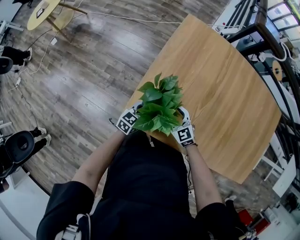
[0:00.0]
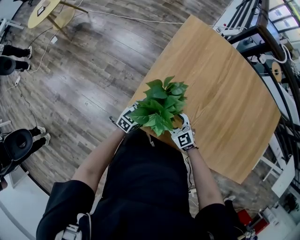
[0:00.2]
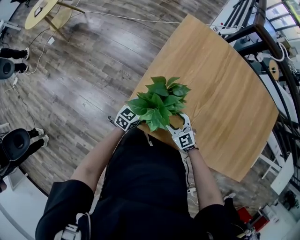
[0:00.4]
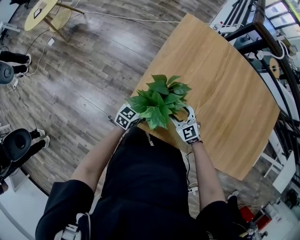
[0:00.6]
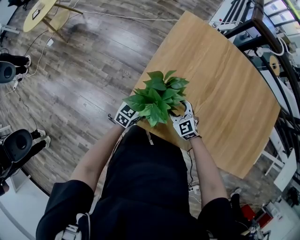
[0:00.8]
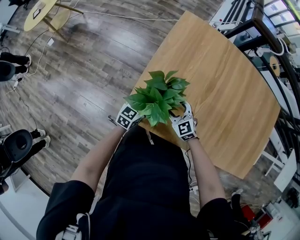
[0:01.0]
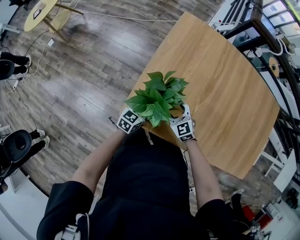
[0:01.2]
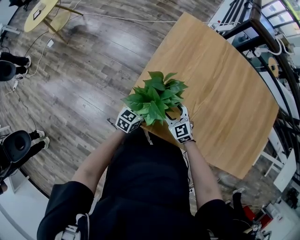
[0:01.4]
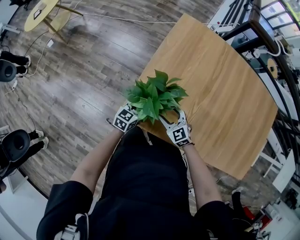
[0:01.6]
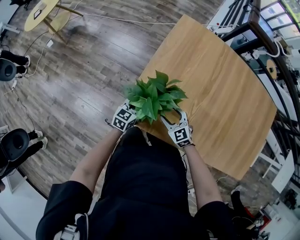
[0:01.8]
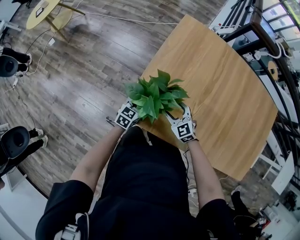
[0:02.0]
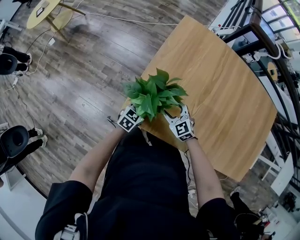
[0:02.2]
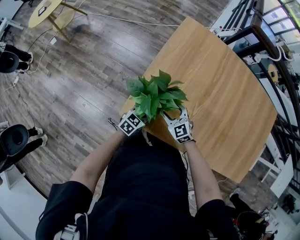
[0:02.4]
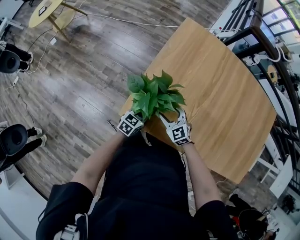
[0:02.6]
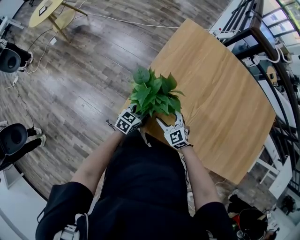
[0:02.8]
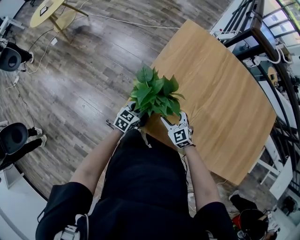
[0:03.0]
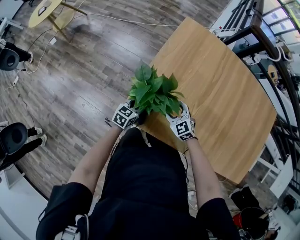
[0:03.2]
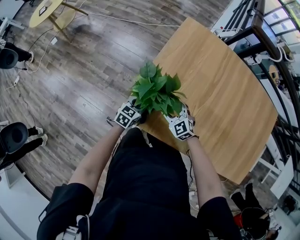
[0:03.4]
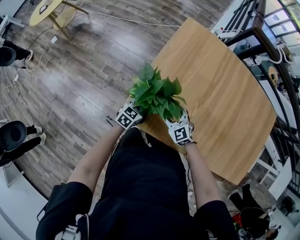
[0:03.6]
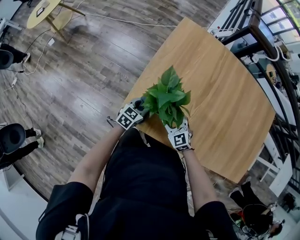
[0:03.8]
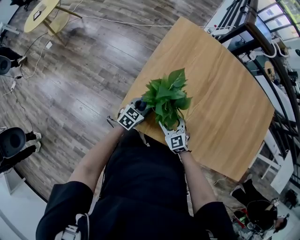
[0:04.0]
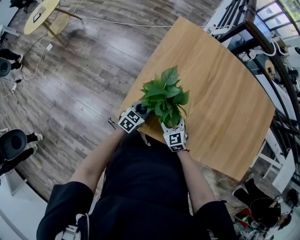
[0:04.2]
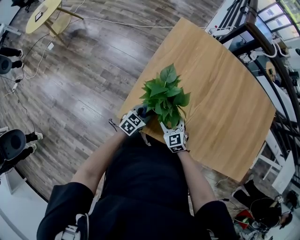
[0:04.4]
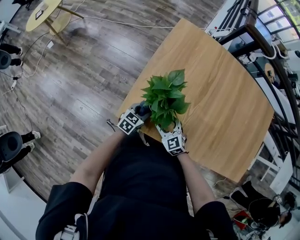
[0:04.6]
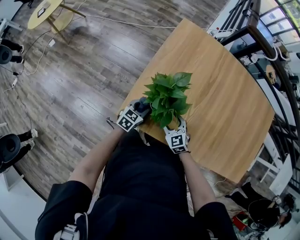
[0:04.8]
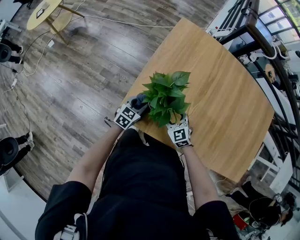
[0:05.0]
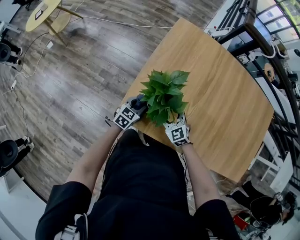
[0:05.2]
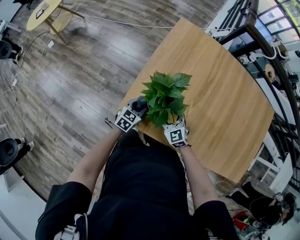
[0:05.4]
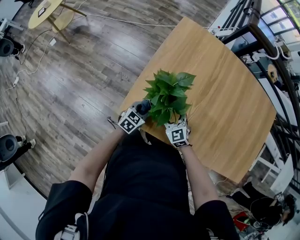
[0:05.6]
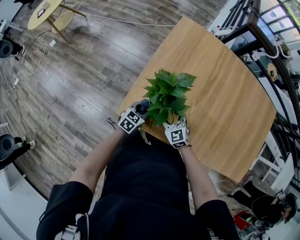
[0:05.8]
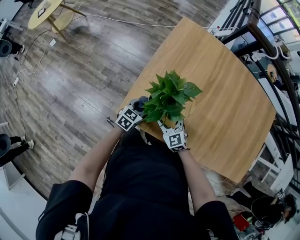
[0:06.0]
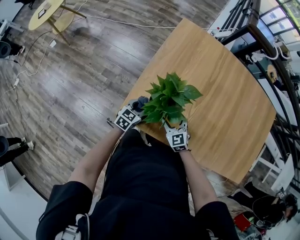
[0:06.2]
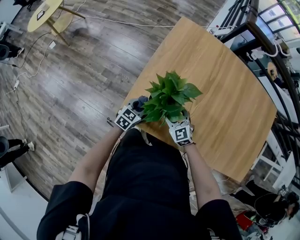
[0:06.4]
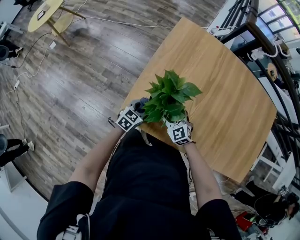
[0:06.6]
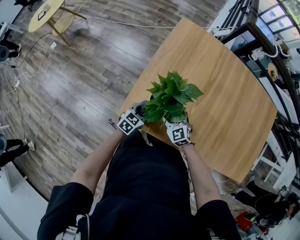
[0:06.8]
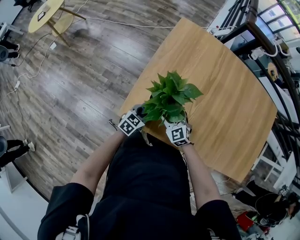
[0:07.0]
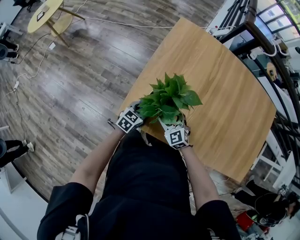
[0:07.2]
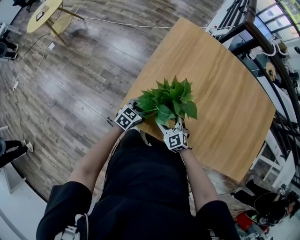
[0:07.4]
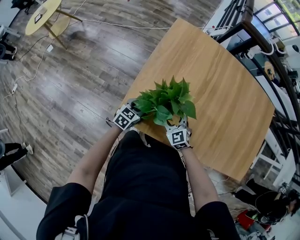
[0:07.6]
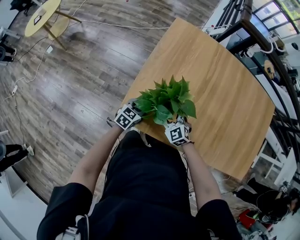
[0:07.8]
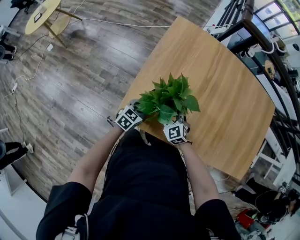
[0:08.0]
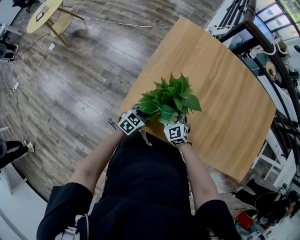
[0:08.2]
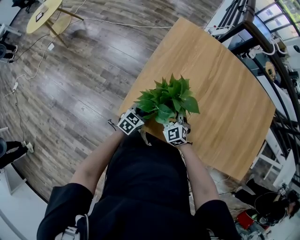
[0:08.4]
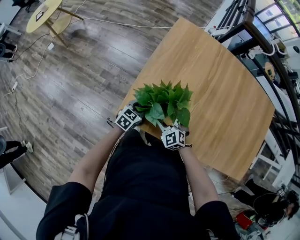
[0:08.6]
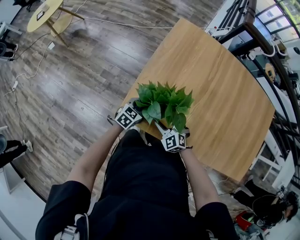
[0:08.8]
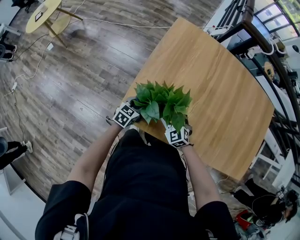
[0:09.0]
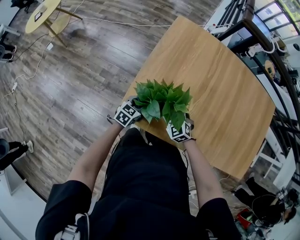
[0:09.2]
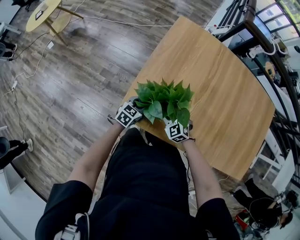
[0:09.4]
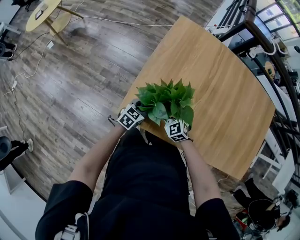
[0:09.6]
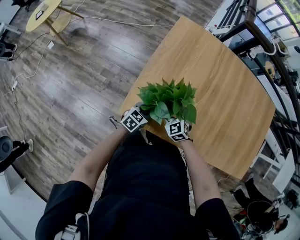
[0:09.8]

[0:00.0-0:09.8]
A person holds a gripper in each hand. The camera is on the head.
0:00.0 to 0:08.4: There are only small adjustments of the grippers.
0:08.4 to 0:09.8: The grippers move only a little.

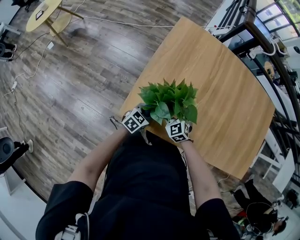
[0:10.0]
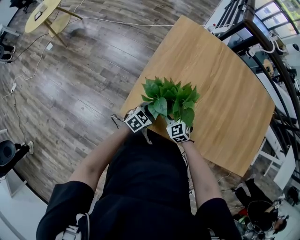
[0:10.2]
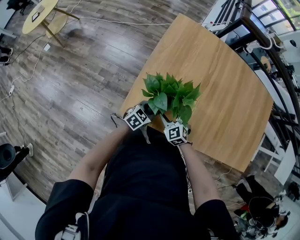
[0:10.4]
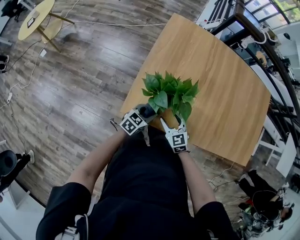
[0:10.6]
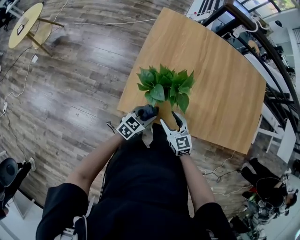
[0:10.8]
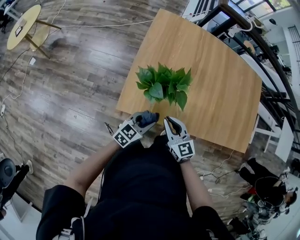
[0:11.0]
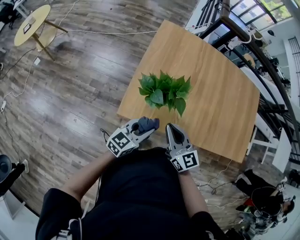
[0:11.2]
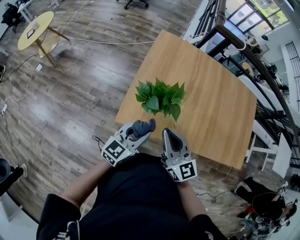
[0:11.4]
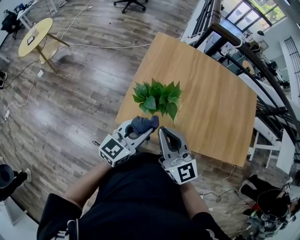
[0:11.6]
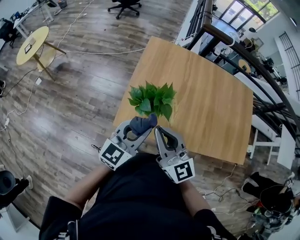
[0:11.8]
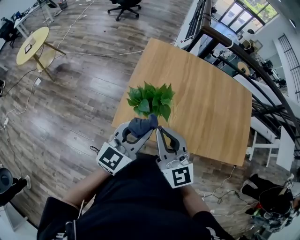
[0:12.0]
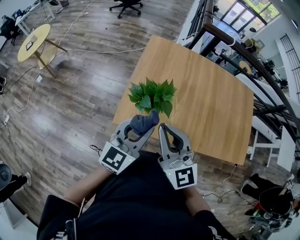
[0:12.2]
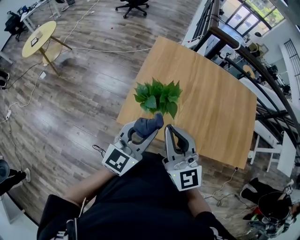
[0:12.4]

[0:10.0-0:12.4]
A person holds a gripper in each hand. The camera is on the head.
0:10.0 to 0:11.2: Both grippers travel together upward and backward, about 20 cm. The left gripper turns by about 30 degrees. The right gripper changes its angle by approximately 40 degrees, and closes.
0:11.2 to 0:12.4: Both grippers move upward, roughly 20 cm. The right gripper rotates roughly 30 degrees; the left gripper turns by about 20 degrees.

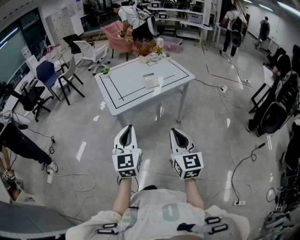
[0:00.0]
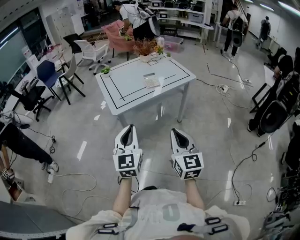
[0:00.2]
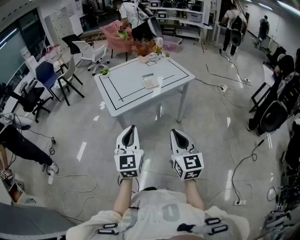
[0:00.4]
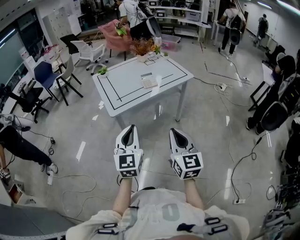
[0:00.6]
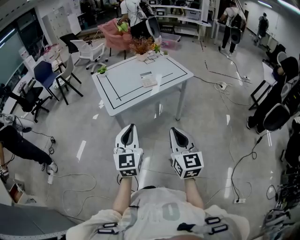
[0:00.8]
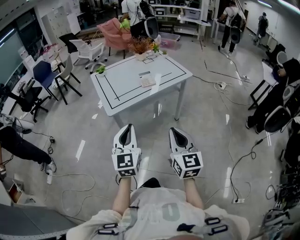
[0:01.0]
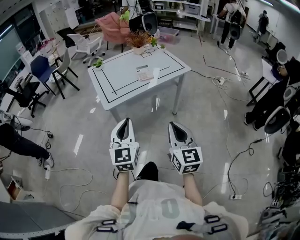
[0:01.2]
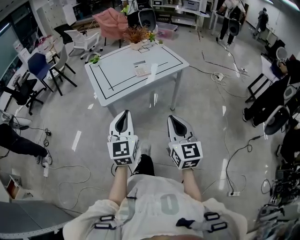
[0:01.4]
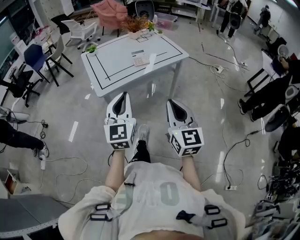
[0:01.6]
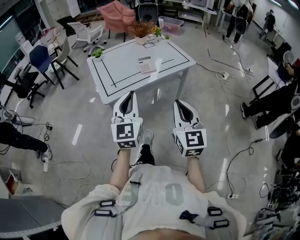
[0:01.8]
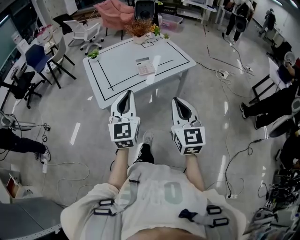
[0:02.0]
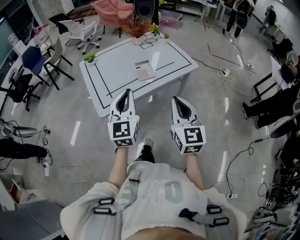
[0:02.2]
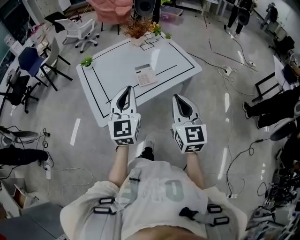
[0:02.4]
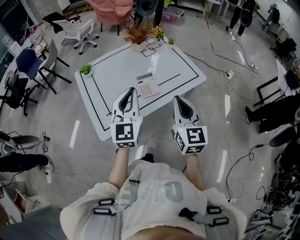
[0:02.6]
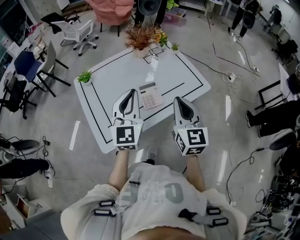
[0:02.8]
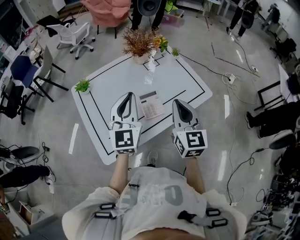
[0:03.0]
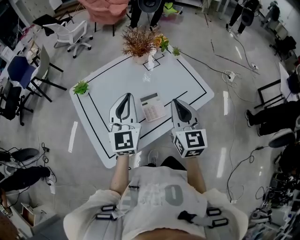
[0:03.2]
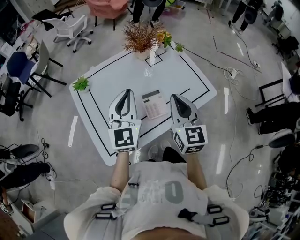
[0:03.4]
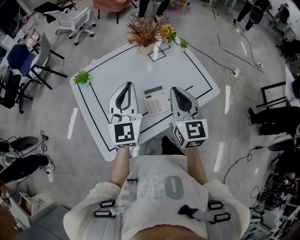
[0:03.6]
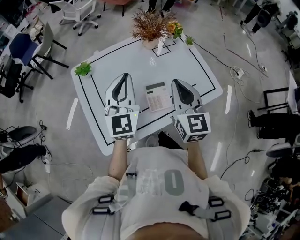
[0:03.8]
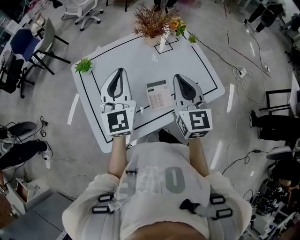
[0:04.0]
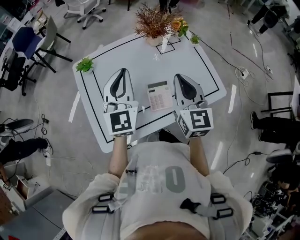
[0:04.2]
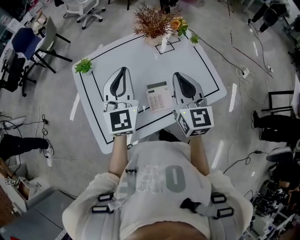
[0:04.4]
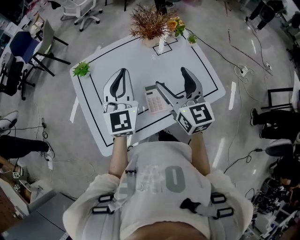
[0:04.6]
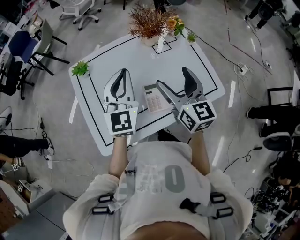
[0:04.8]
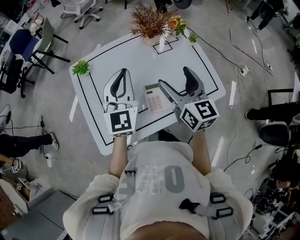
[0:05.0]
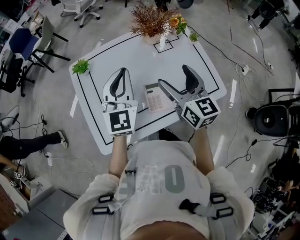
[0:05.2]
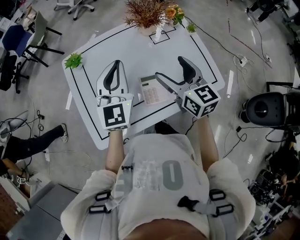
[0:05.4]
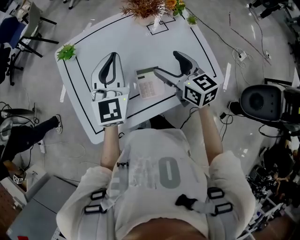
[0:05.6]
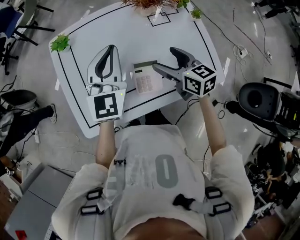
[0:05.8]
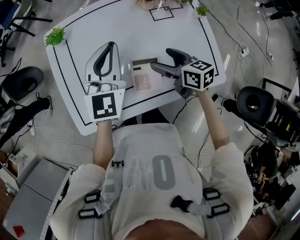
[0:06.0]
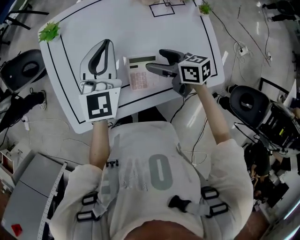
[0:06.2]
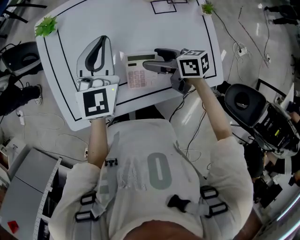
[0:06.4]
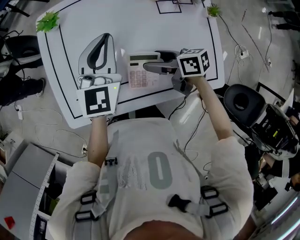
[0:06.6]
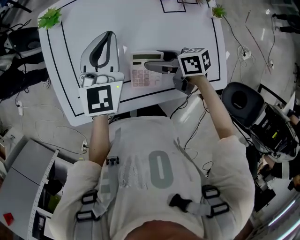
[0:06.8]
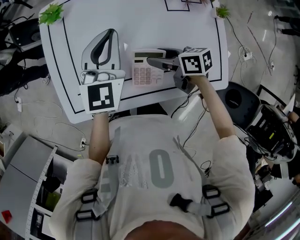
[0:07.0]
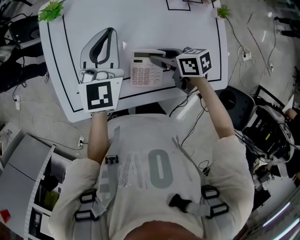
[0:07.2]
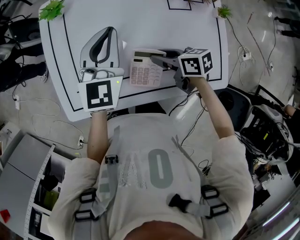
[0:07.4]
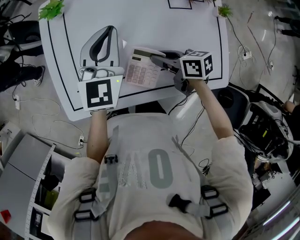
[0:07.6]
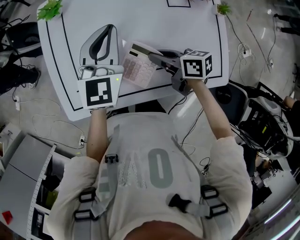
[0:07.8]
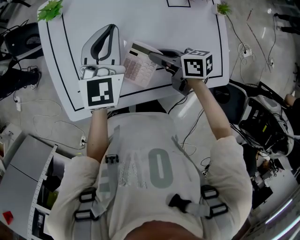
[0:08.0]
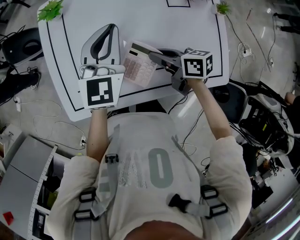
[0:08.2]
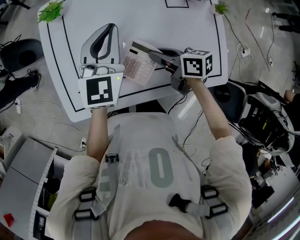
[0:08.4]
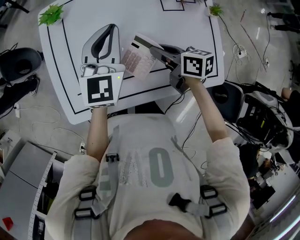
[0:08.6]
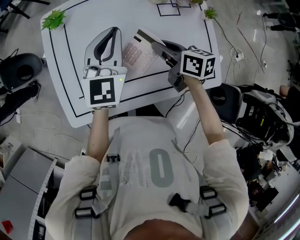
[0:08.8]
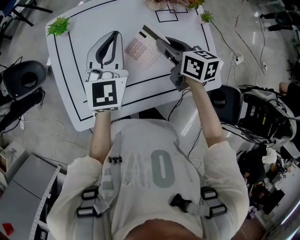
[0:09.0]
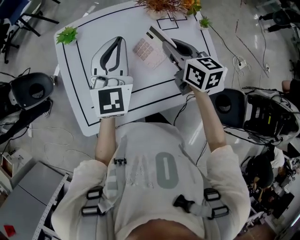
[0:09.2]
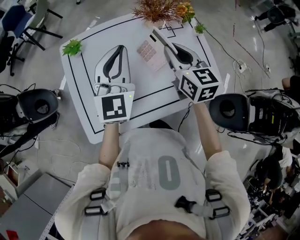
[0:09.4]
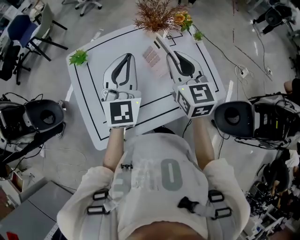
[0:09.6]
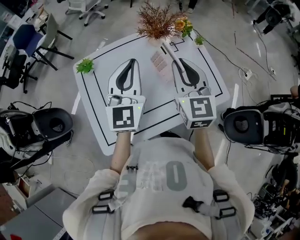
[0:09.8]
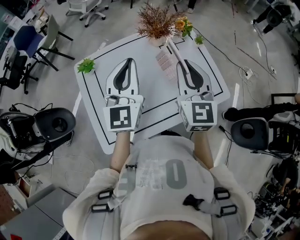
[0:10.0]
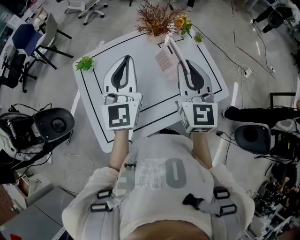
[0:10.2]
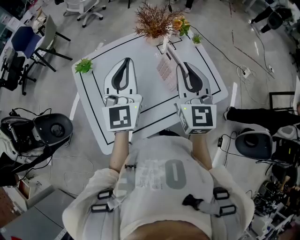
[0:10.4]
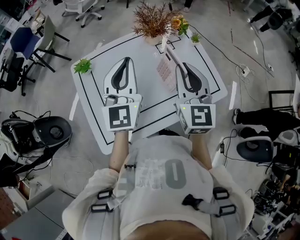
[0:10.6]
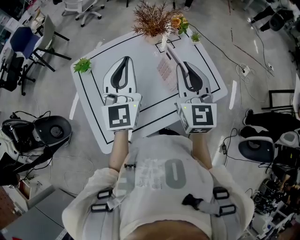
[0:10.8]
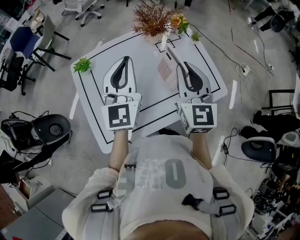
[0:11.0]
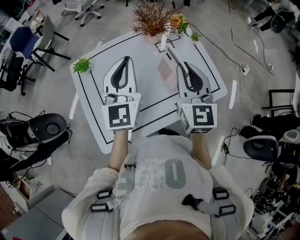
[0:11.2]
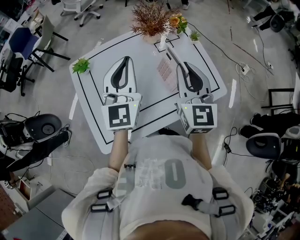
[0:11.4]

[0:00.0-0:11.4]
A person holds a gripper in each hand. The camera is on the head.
0:00.0 to 0:01.4: The left gripper changes place by some 5 cm. The right gripper moves approximately 5 cm.
0:01.4 to 0:02.8: The two grippers travel together, forward, about 40 cm.
0:02.8 to 0:04.2: The right gripper is displaced forward by approximately 15 cm, while the left gripper goes some 15 cm forward and to the left.
0:04.2 to 0:05.6: The left gripper shifts by approximately 5 cm. The right gripper is displaced downward and forward by about 10 cm, changes its angle by roughly 30 degrees, and opens its fingers.
0:05.6 to 0:07.2: The left gripper shifts about 10 cm downward. The right gripper shifts approximately 20 cm downward, rotates approximately 50 degrees, and closes its fingers.
0:07.2 to 0:08.6: The right gripper heads upward, covering roughly 5 cm.
0:08.6 to 0:10.0: The right gripper ends up roughly 30 cm from where it was, and swivels some 80 degrees. The left gripper swings up and down, roughly 5 cm each way, with 2 reversals.
0:10.0 to 0:11.4: The grippers stay close to where they were, moving slightly.
